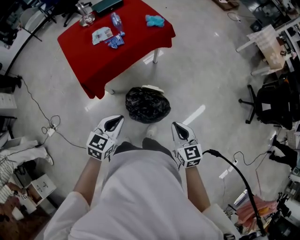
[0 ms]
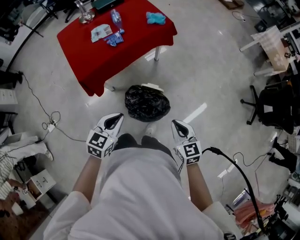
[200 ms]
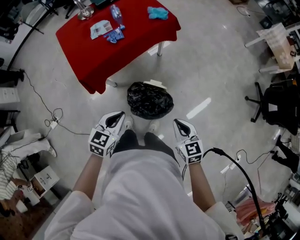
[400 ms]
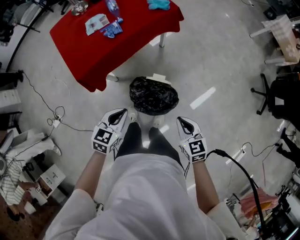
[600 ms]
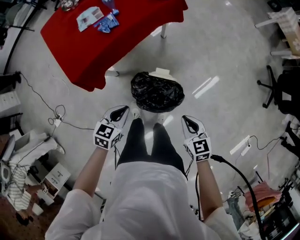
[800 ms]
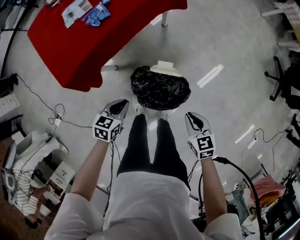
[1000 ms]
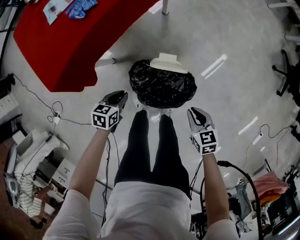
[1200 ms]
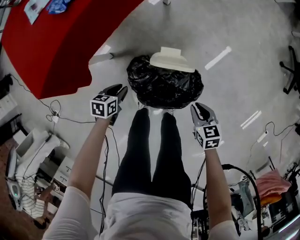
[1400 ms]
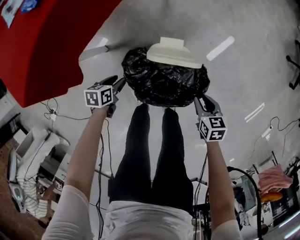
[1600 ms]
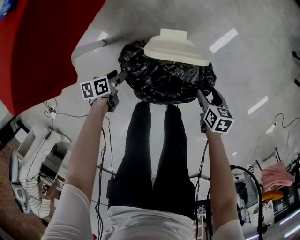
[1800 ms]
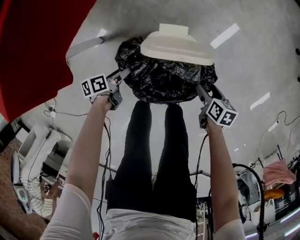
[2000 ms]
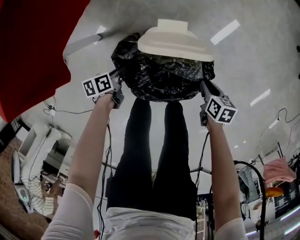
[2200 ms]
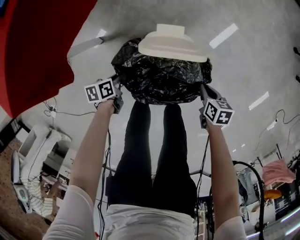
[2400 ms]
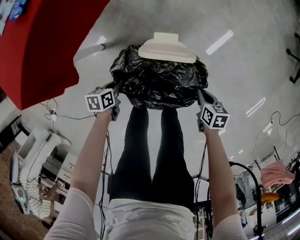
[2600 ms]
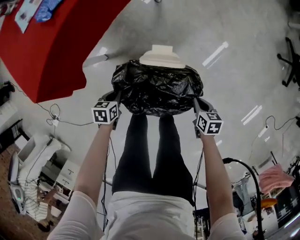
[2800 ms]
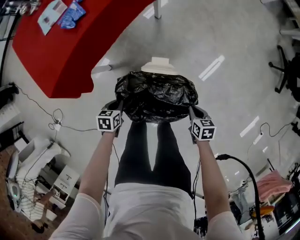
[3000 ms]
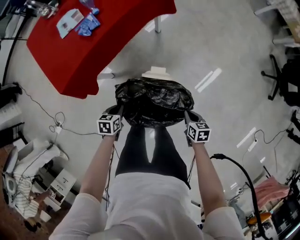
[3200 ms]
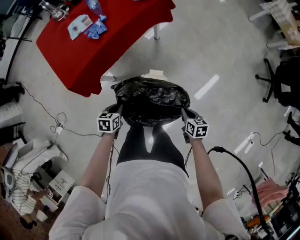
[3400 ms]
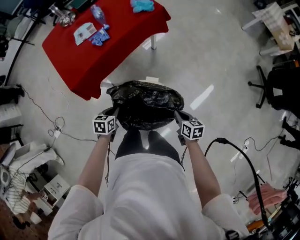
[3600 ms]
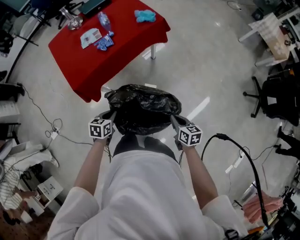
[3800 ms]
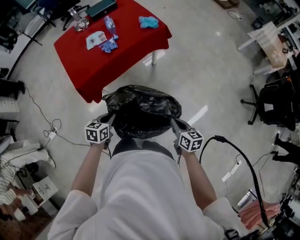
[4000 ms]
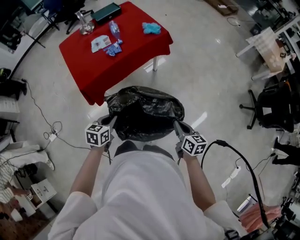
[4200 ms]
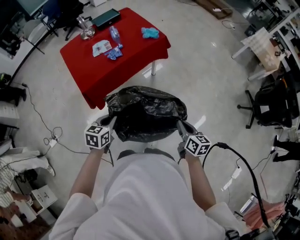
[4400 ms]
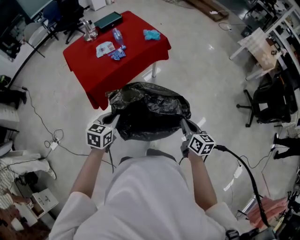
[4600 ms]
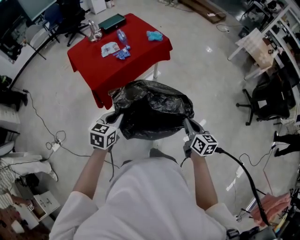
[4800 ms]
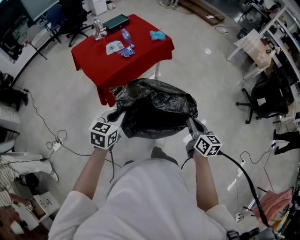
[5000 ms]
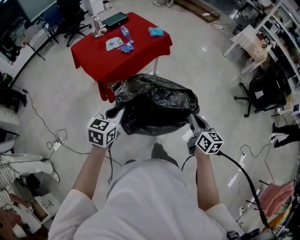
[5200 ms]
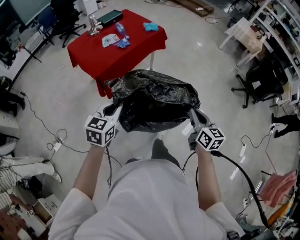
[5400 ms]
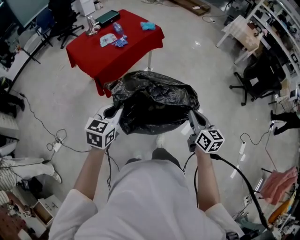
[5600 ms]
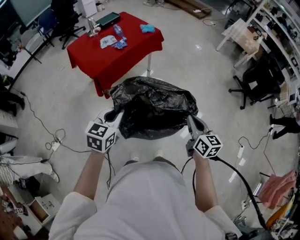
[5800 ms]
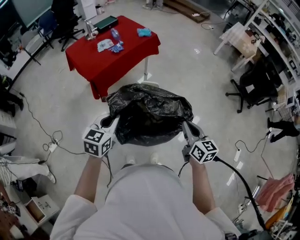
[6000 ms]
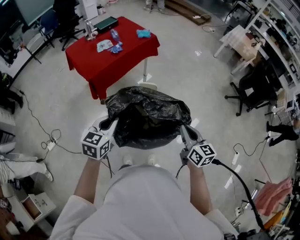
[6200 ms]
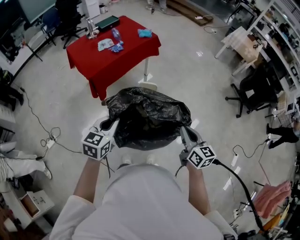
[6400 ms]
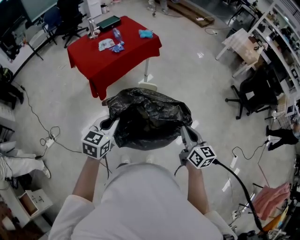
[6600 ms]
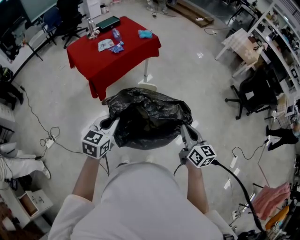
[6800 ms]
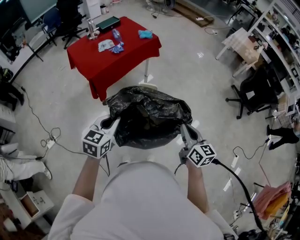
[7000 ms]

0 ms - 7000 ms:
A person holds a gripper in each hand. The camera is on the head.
0 ms - 1400 ms: The grippers both shift downward by about 50 cm. The left gripper turns by about 40 degrees, and opens up, while the right gripper swivels roughly 30 degrees.
1400 ms - 2800 ms: The left gripper moves about 15 cm downward and comes back, and closes up; the right gripper moves downward and to the right, approximately 10 cm, and opens, then closes again.
2800 ms - 4200 ms: The grippers both shift upward by roughly 50 cm. The left gripper turns by some 30 degrees. The right gripper tips its fingers upward by roughly 30 degrees.
4200 ms - 5600 ms: Both grippers travel together backward and upward, roughly 30 cm. The left gripper rotates approximately 30 degrees, while the right gripper changes its angle by about 20 degrees.
5600 ms - 7000 ms: The two grippers go approximately 5 cm to the right.

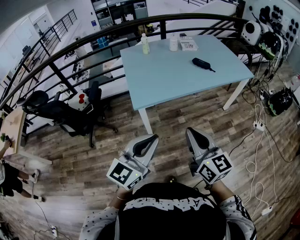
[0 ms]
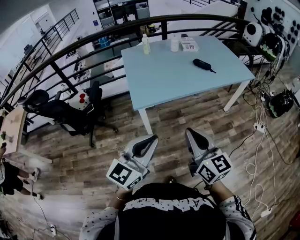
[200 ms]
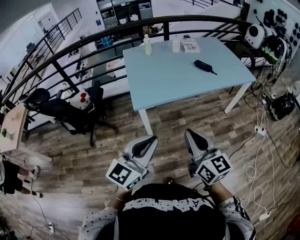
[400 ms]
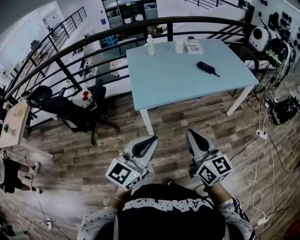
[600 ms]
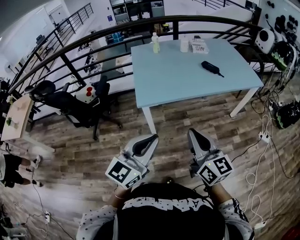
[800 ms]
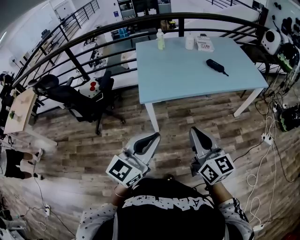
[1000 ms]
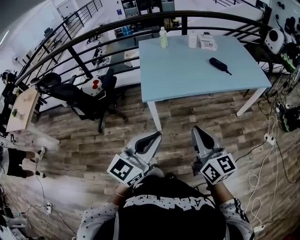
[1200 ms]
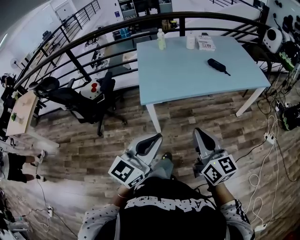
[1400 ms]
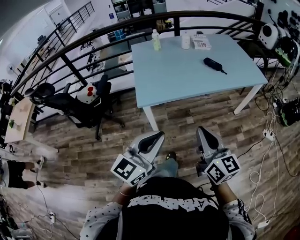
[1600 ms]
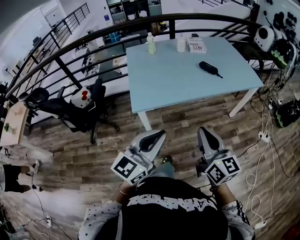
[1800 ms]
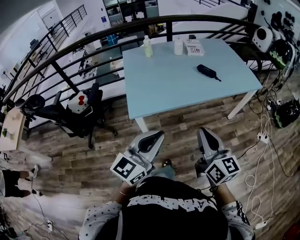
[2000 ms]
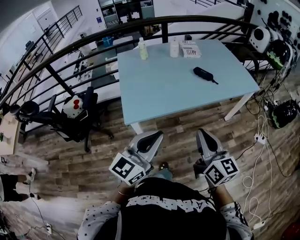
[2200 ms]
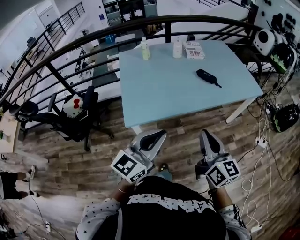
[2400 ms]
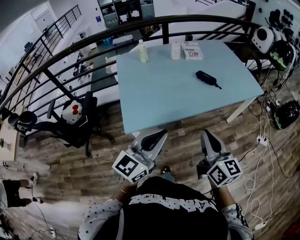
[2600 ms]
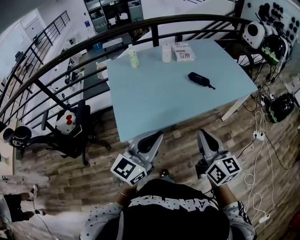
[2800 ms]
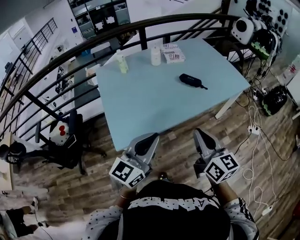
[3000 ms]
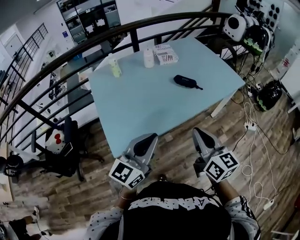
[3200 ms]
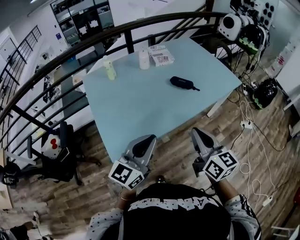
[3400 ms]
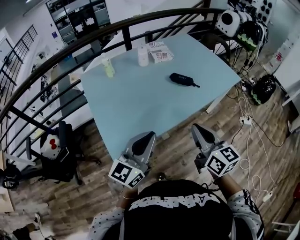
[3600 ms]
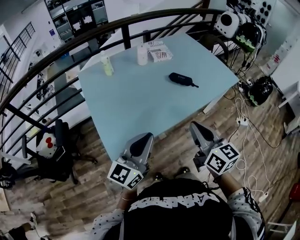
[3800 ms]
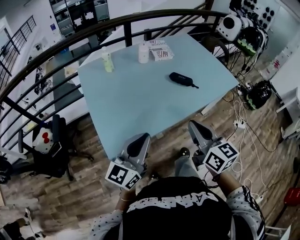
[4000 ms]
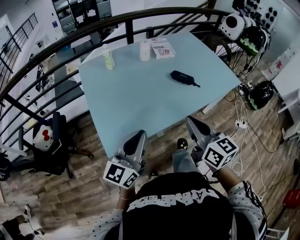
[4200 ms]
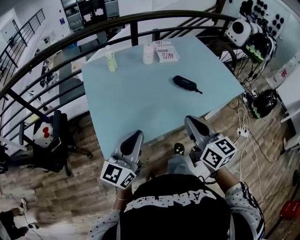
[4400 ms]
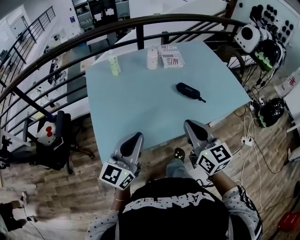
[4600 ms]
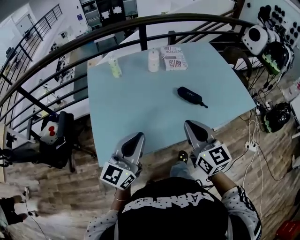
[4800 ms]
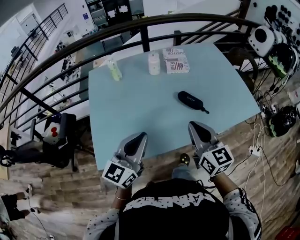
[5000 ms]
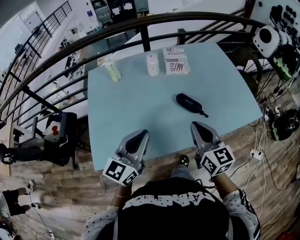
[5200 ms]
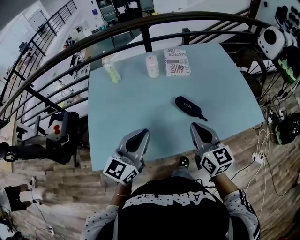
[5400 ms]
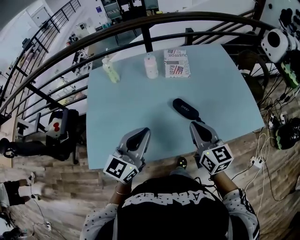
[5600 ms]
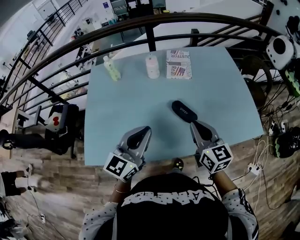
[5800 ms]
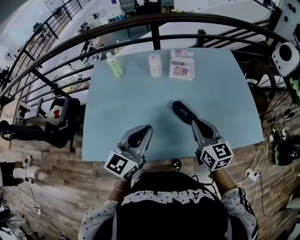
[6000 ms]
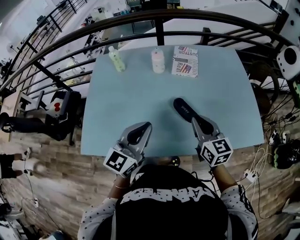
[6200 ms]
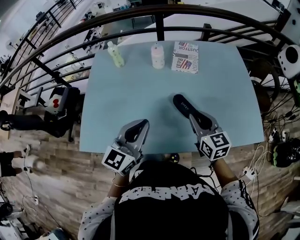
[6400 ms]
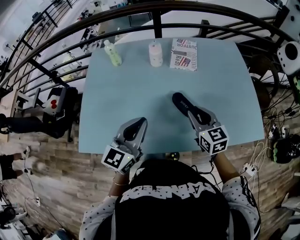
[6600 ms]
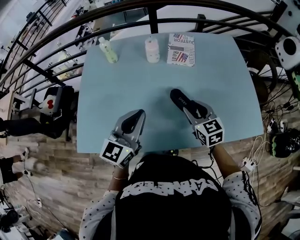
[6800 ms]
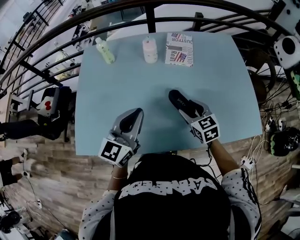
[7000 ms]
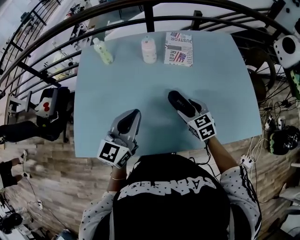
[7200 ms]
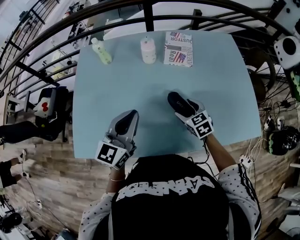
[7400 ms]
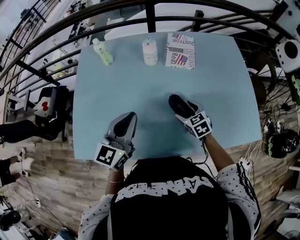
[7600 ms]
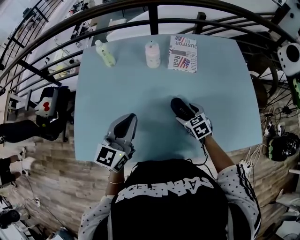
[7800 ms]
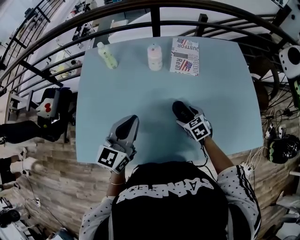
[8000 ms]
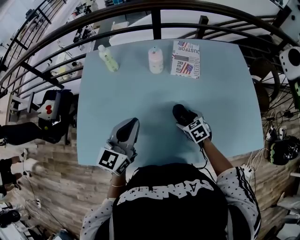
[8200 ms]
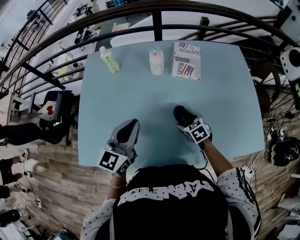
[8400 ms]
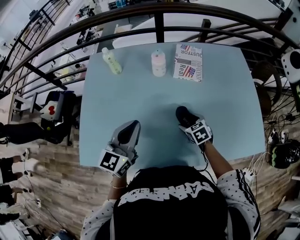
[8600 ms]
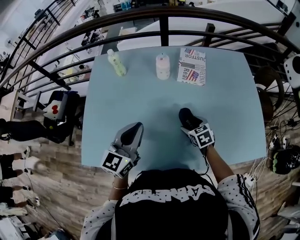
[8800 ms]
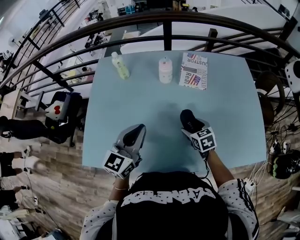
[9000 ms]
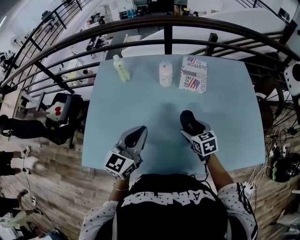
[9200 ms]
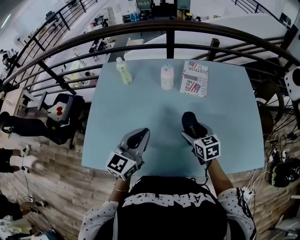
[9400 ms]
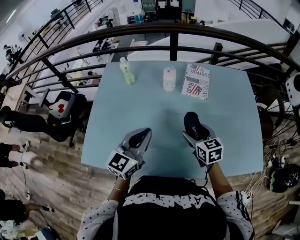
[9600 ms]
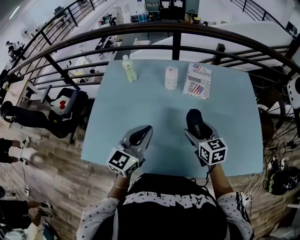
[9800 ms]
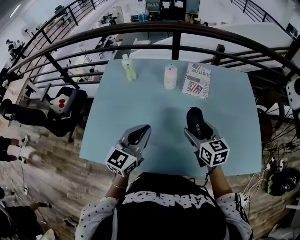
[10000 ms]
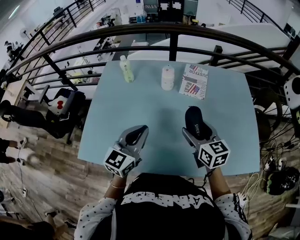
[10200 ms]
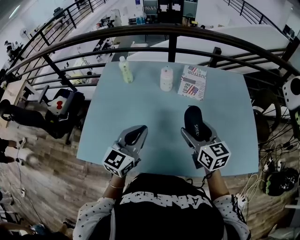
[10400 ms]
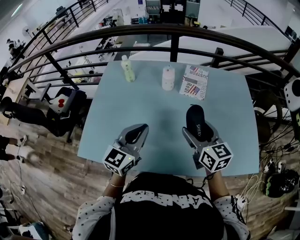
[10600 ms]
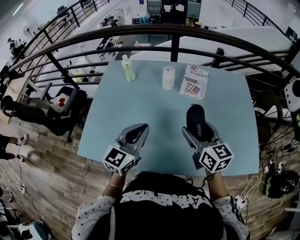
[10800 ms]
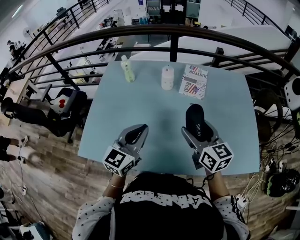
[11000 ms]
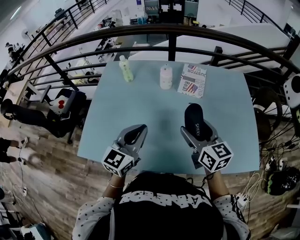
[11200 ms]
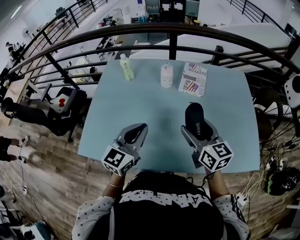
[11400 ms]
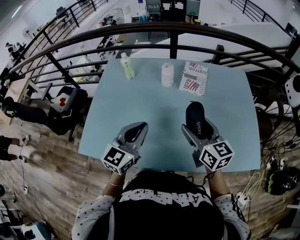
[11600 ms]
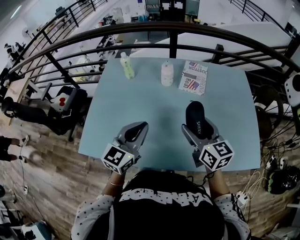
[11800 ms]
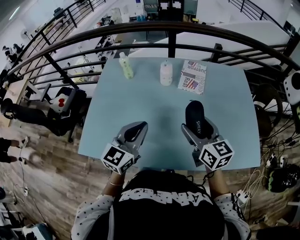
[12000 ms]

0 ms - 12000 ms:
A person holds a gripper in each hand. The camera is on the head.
0 ms - 1600 ms: Both grippers move to the right, about 5 cm.
1600 ms - 3000 ms: The two grippers go roughly 25 cm forward.
3000 ms - 4400 ms: The left gripper shifts some 10 cm forward and to the left. The right gripper travels forward by about 10 cm.
4400 ms - 6000 ms: The right gripper moves forward and to the right, roughly 35 cm, while the left gripper shifts about 35 cm to the right and forward.
6000 ms - 7600 ms: The right gripper travels downward and forward by some 25 cm, points its fingers roughly 30 degrees further downward, and opens. The left gripper shifts roughly 10 cm forward and to the left.
7600 ms - 9000 ms: There are only small adjustments of the grippers.
9000 ms - 10400 ms: The right gripper goes approximately 20 cm upward, and points its fingers roughly 30 degrees further upward.
10400 ms - 12000 ms: The grippers move only a little.

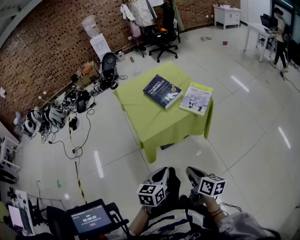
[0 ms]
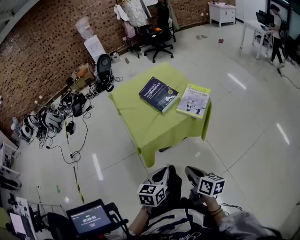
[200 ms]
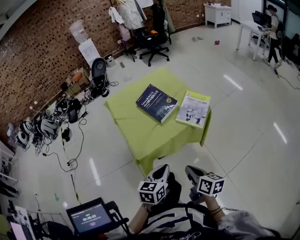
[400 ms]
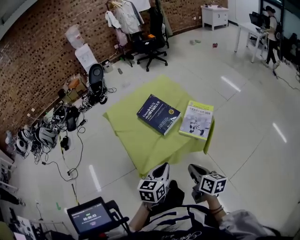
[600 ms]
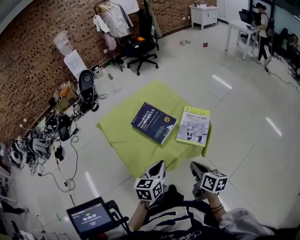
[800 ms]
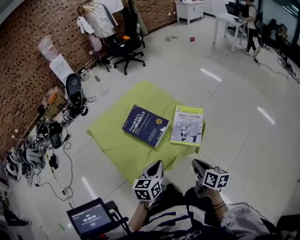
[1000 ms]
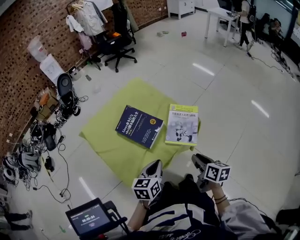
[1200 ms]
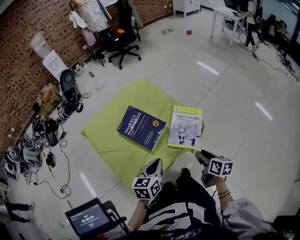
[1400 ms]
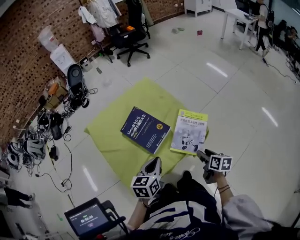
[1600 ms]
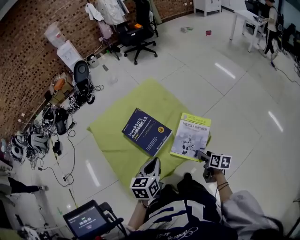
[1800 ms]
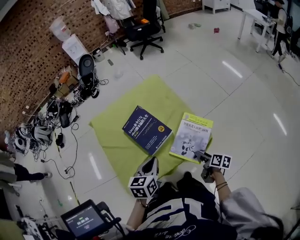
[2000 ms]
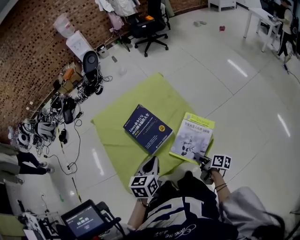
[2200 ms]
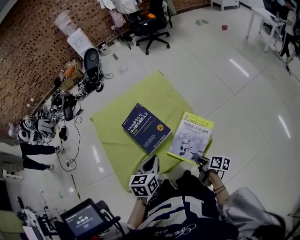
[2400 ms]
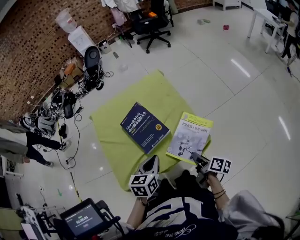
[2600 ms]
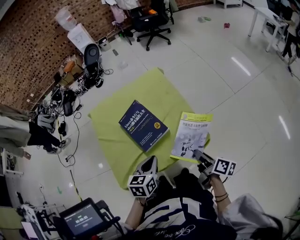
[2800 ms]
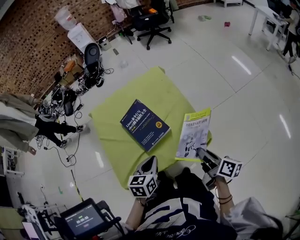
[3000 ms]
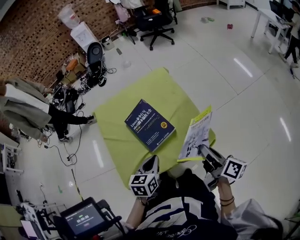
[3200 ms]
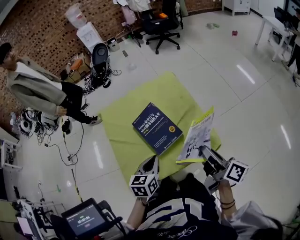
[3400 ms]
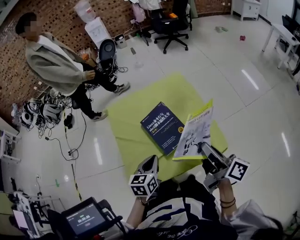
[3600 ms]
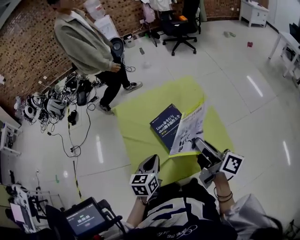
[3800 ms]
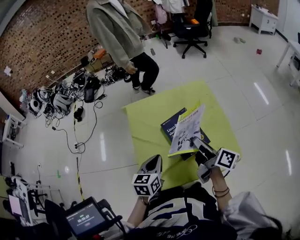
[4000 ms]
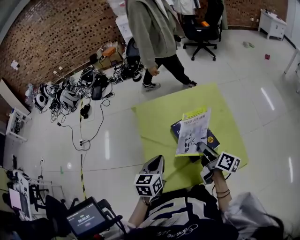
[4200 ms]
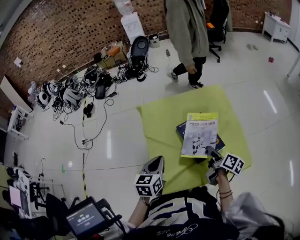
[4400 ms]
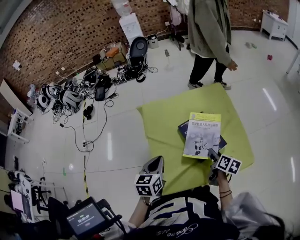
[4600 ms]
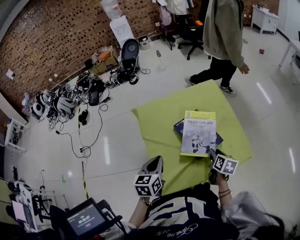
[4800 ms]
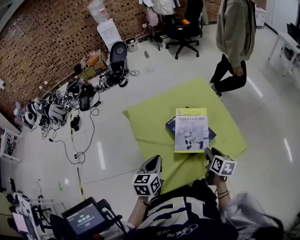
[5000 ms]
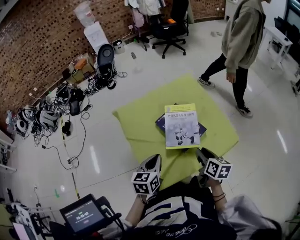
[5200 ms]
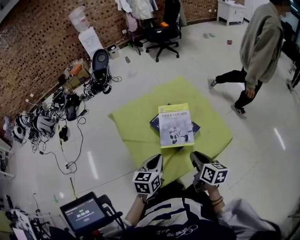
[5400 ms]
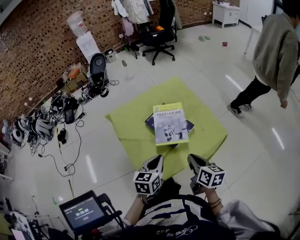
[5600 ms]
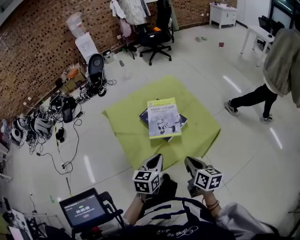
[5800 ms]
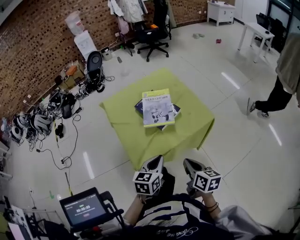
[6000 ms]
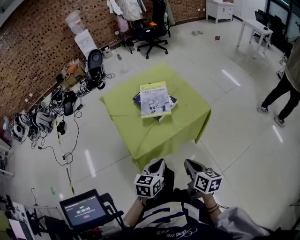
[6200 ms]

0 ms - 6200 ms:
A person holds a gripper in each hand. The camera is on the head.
0 ms - 1600 ms: The two grippers go some 40 cm forward. The right gripper rotates about 20 degrees, and opens up.
1600 ms - 3200 ms: The right gripper shifts about 15 cm upward and forward, turns by approximately 40 degrees, and closes.
3200 ms - 4600 ms: The right gripper shifts roughly 25 cm to the left, downward and forward, and changes its angle by approximately 30 degrees; the left gripper is displaced to the left by about 25 cm.
4600 ms - 6200 ms: The right gripper goes approximately 35 cm backward, and closes up. Meanwhile the left gripper is displaced backward and to the right by roughly 30 cm, and rotates some 30 degrees.
